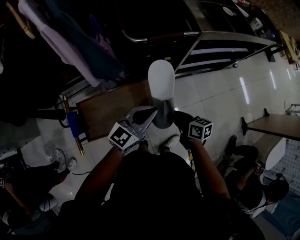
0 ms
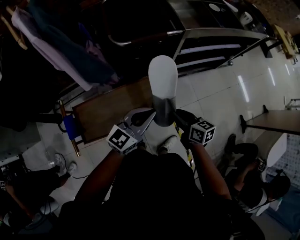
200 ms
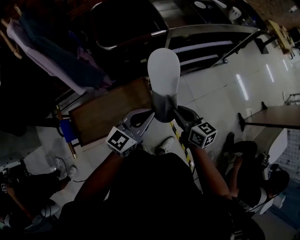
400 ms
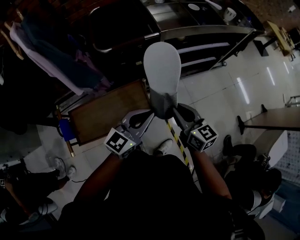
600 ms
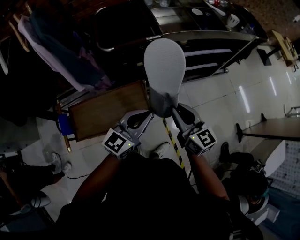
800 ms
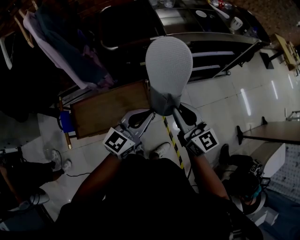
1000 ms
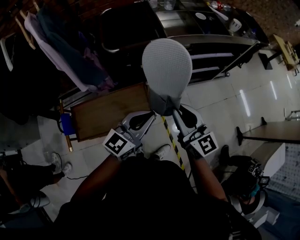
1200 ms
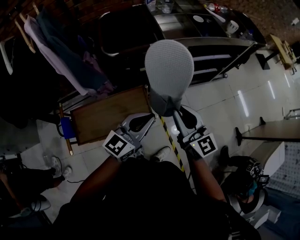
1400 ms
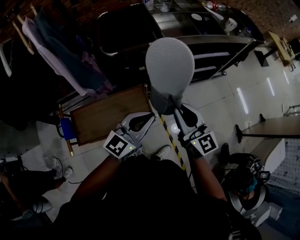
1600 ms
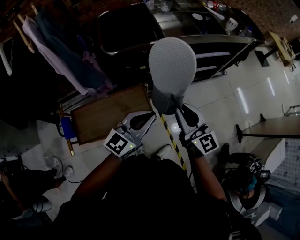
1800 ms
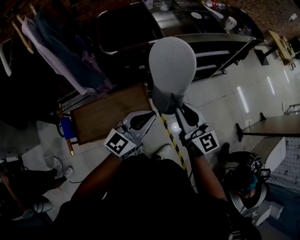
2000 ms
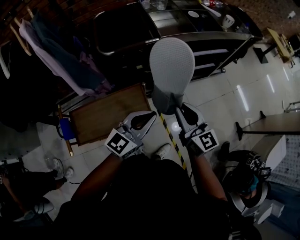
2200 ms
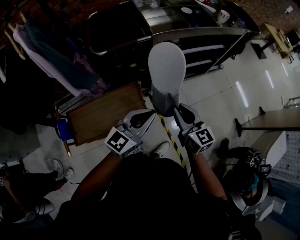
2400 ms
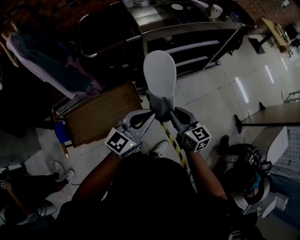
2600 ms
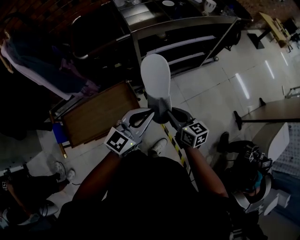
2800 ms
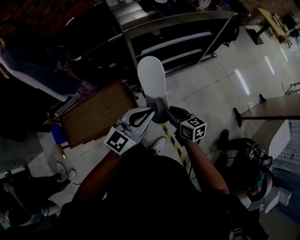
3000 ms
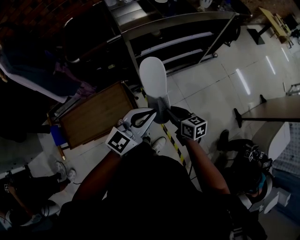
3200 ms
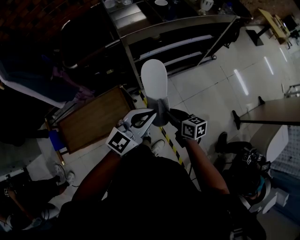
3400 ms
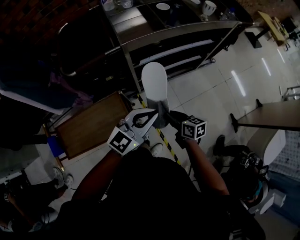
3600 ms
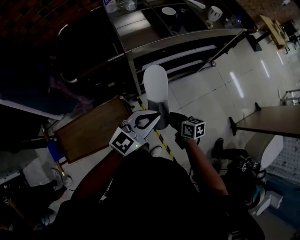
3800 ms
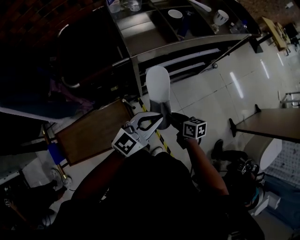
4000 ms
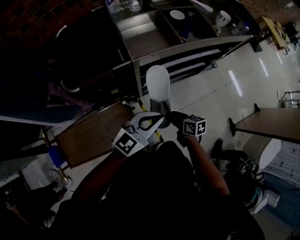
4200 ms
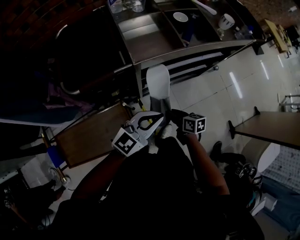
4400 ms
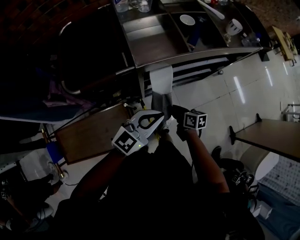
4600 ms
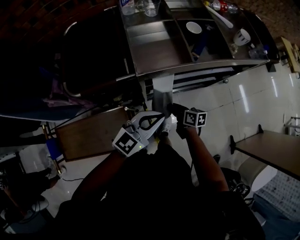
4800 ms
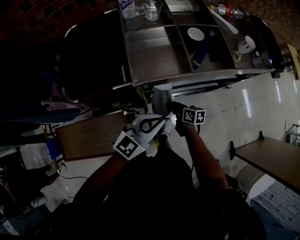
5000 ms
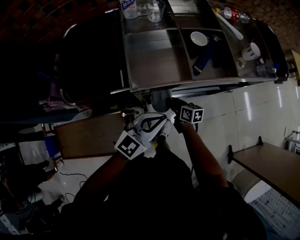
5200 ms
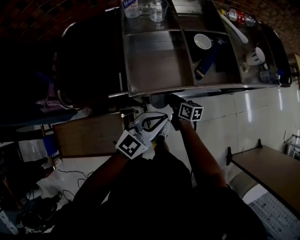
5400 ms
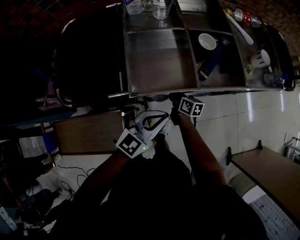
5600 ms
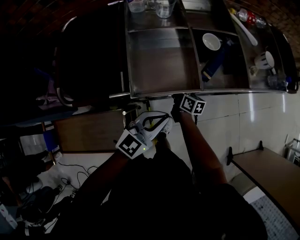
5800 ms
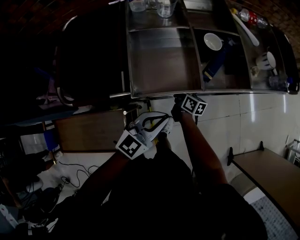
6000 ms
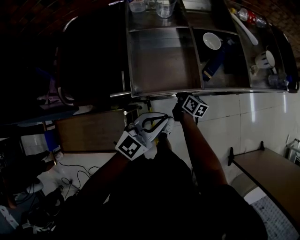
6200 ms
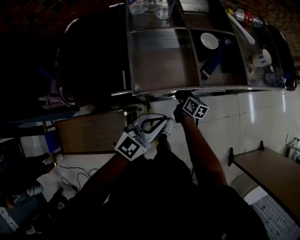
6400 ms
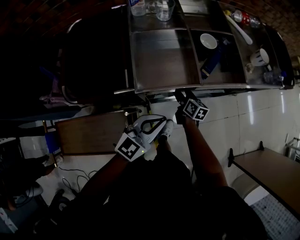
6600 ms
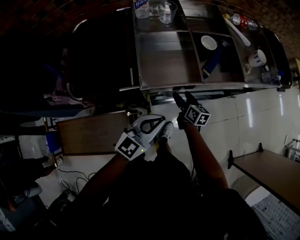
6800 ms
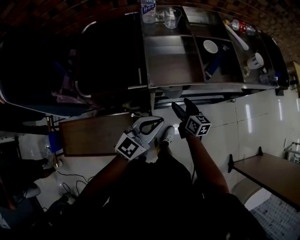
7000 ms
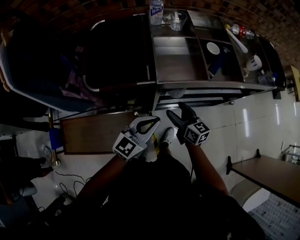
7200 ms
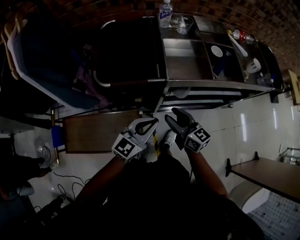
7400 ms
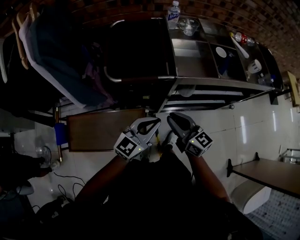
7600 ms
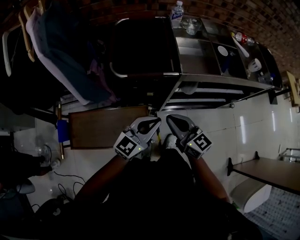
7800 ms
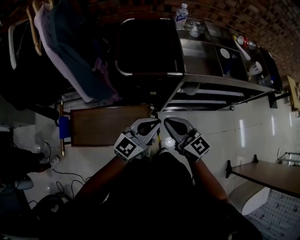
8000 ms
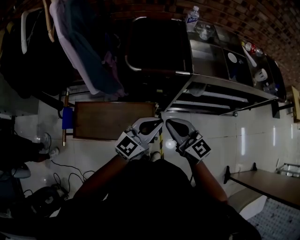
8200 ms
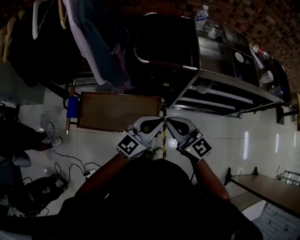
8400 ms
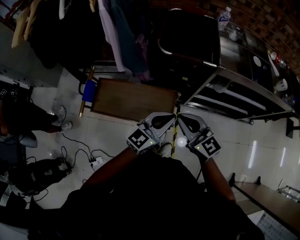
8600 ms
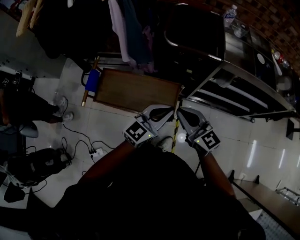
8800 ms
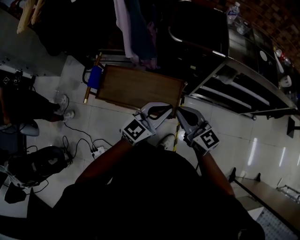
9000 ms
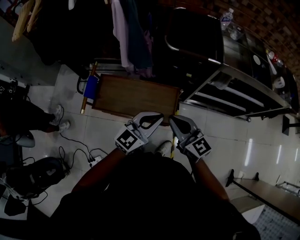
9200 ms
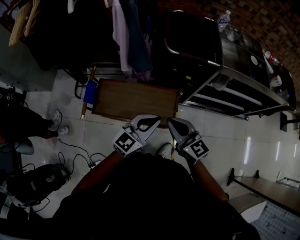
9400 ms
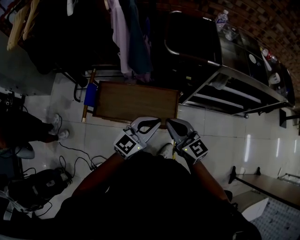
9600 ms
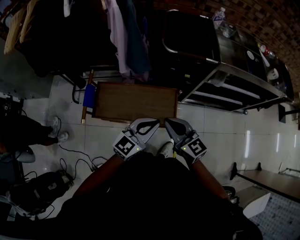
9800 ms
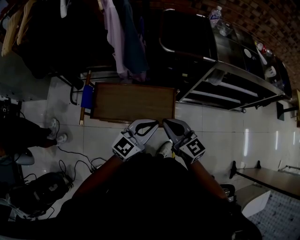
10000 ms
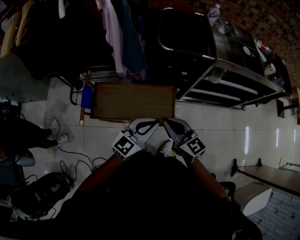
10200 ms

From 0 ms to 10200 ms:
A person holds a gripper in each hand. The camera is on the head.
From 0 ms to 1400 ms: The right gripper travels upward and to the right by approximately 25 cm, and swivels roughly 50 degrees, while the left gripper shifts some 15 cm to the right and upward.
From 1400 ms to 3000 ms: The left gripper goes some 15 cm to the right. Meanwhile the right gripper shifts about 25 cm downward and to the right, and changes its angle by approximately 40 degrees.
From 3000 ms to 4400 ms: The right gripper shifts roughly 20 cm forward and downward; the left gripper heads forward, covering roughly 20 cm.
From 4400 ms to 5800 ms: The right gripper goes roughly 25 cm forward. The left gripper goes roughly 15 cm forward.
From 5800 ms to 7200 ms: The right gripper heads upward and backward, covering about 20 cm, rotates some 30 degrees, and opens its fingers. Meanwhile the left gripper is displaced backward and to the left by about 15 cm.
From 7200 ms to 8800 ms: The right gripper travels to the left, backward and upward by about 35 cm, changes its angle by roughly 30 degrees, and closes its fingers; the left gripper moves to the left and backward, some 25 cm.
From 8800 ms to 10200 ms: The two grippers go some 10 cm to the left.

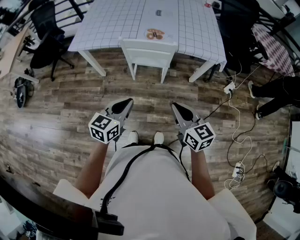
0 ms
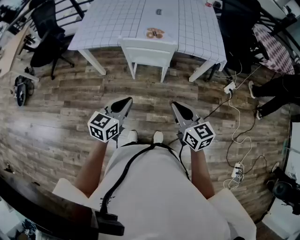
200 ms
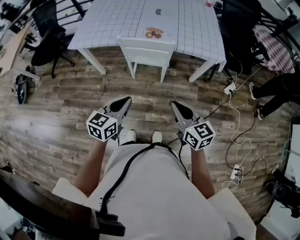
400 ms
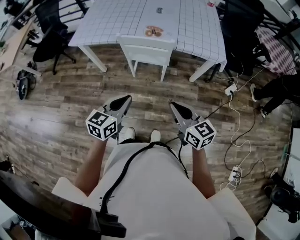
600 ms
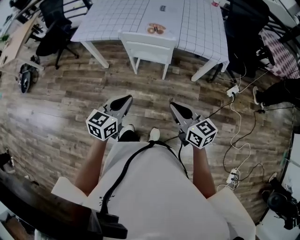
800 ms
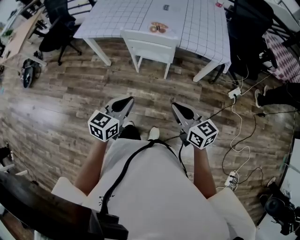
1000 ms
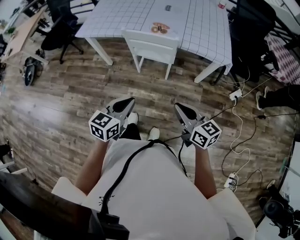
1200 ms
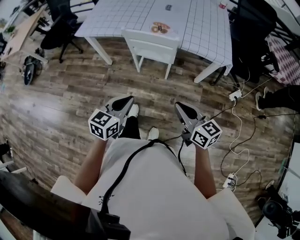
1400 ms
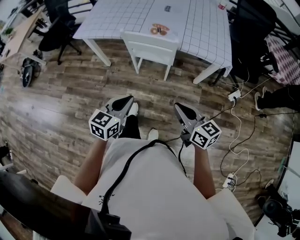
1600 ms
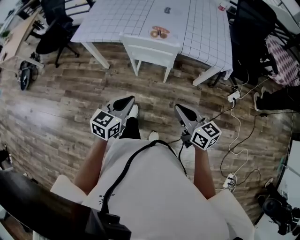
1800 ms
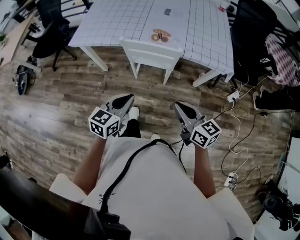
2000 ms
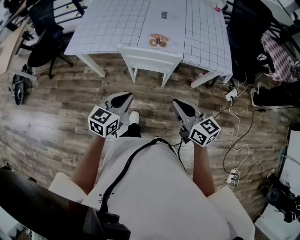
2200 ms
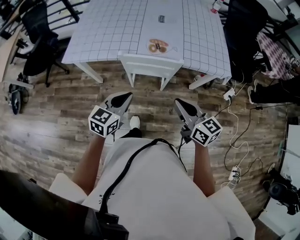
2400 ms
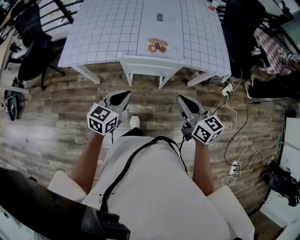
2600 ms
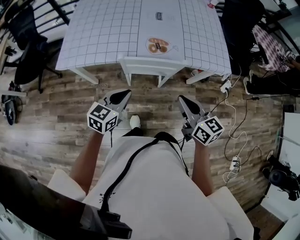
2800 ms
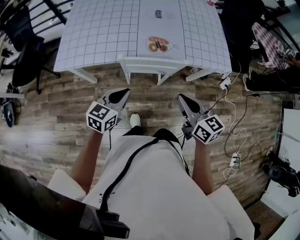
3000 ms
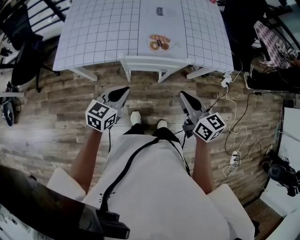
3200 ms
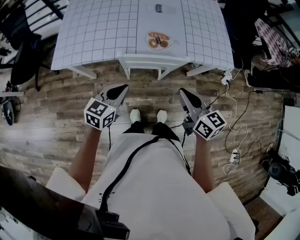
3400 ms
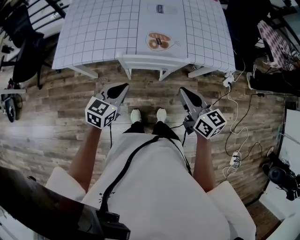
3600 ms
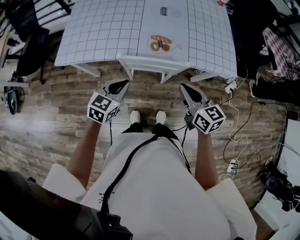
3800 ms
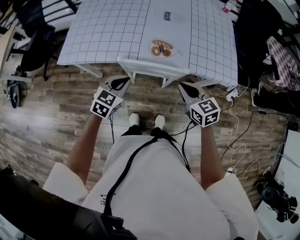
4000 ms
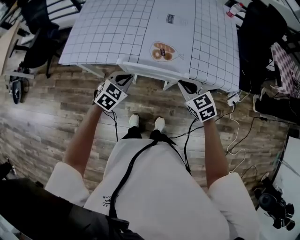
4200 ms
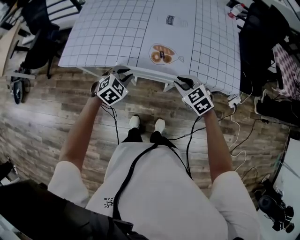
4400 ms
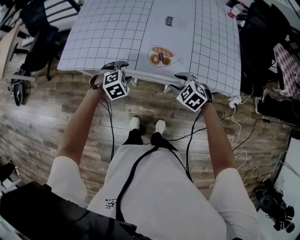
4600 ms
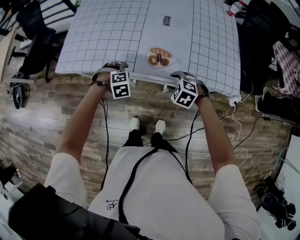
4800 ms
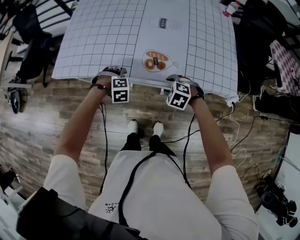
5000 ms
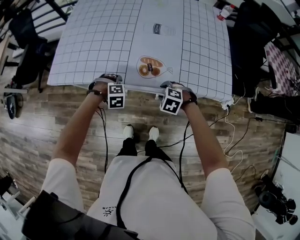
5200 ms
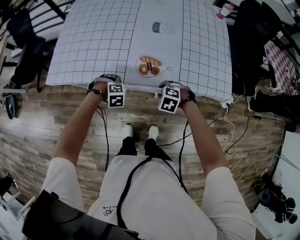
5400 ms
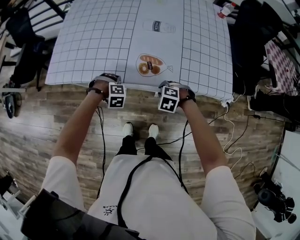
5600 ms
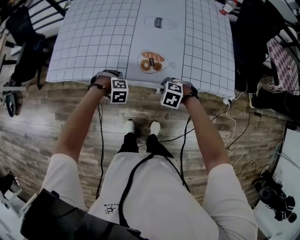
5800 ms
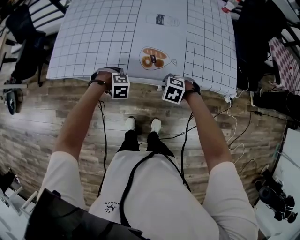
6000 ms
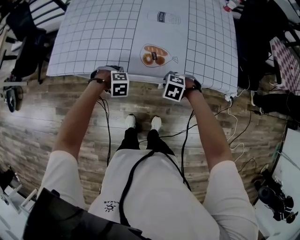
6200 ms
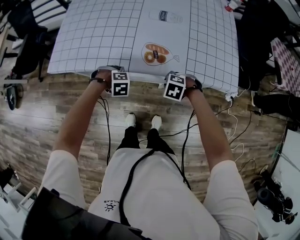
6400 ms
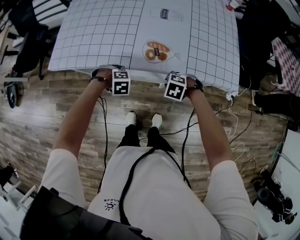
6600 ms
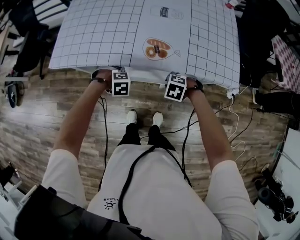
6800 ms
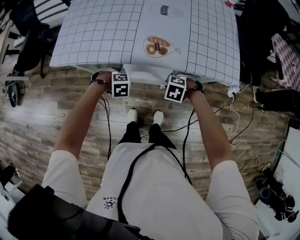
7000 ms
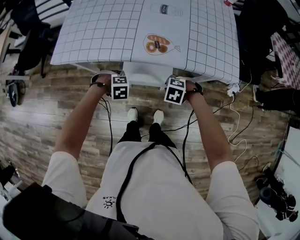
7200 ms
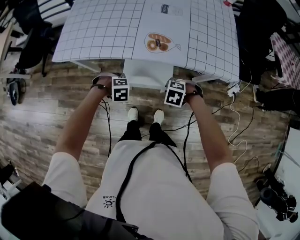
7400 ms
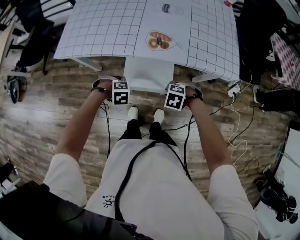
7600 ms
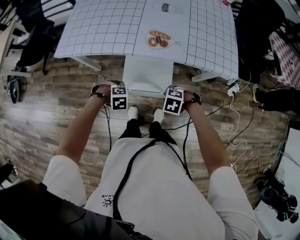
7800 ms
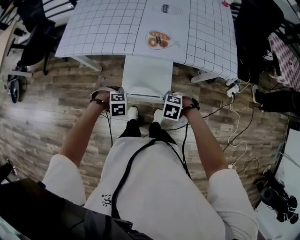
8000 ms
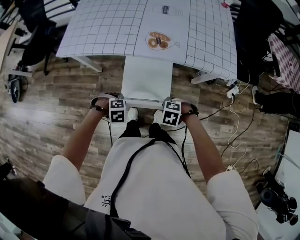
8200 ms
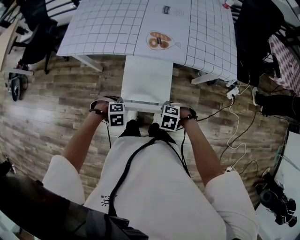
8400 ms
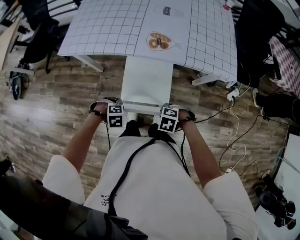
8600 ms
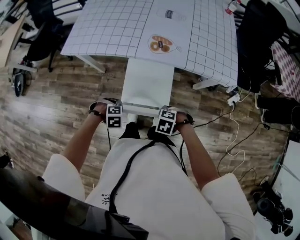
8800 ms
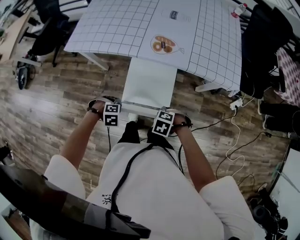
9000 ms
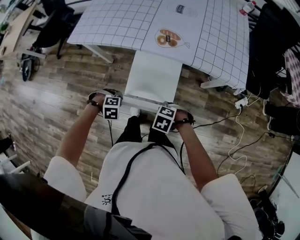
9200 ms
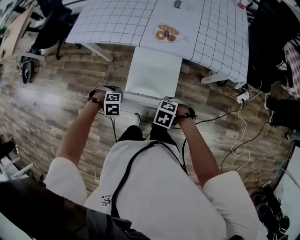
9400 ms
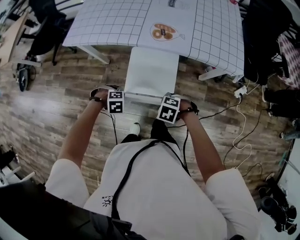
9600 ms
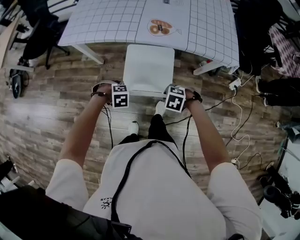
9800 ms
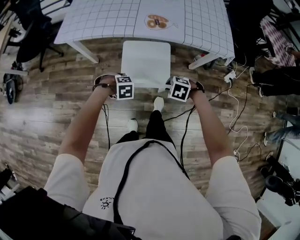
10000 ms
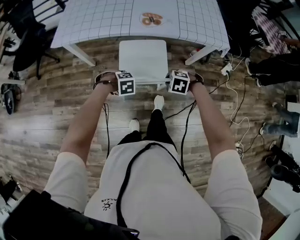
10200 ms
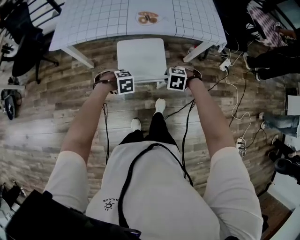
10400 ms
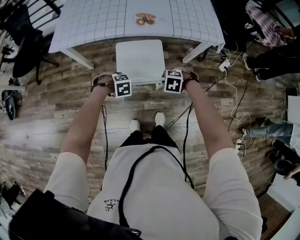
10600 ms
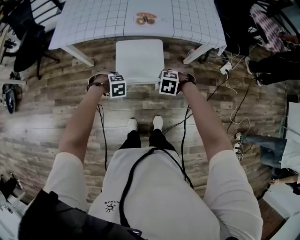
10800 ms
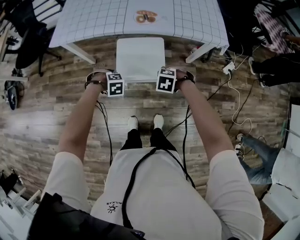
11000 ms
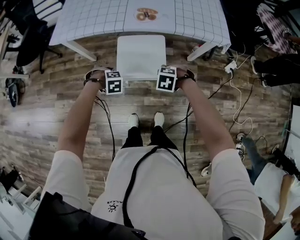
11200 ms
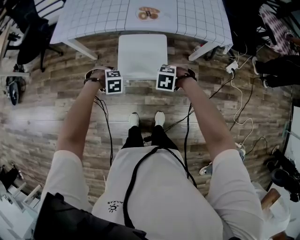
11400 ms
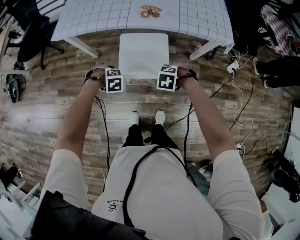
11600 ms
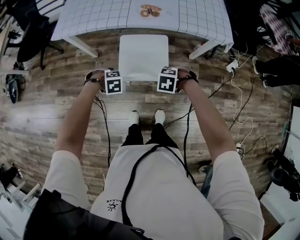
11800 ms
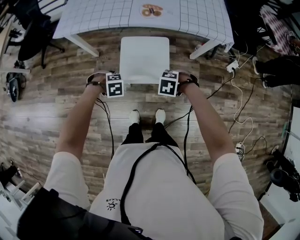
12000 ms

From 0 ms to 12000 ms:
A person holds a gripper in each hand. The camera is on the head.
From 0 ms to 1600 ms: The grippers both shift to the right by some 5 cm.
From 1600 ms to 3000 ms: Both grippers travel together forward and to the left, some 30 cm.
From 3000 ms to 4400 ms: The two grippers go some 20 cm forward and downward. The right gripper turns by roughly 50 degrees, while the left gripper changes its angle by some 40 degrees.
From 4400 ms to 6000 ms: The grippers both shift downward by about 10 cm. The right gripper tips its fingers downward by roughly 30 degrees, and opens, then closes once more, while the left gripper tilts its fingers some 30 degrees downward, and opens and closes again.
From 6000 ms to 7600 ms: The left gripper moves roughly 20 cm, while the right gripper changes place by roughly 15 cm.
From 7600 ms to 9000 ms: The right gripper moves about 15 cm. Meanwhile the left gripper ends up some 15 cm from where it was.
From 9000 ms to 10400 ms: There are only small adjustments of the grippers.
From 10400 ms to 12000 ms: The right gripper changes place by about 5 cm. Meanwhile the left gripper changes place by approximately 5 cm.

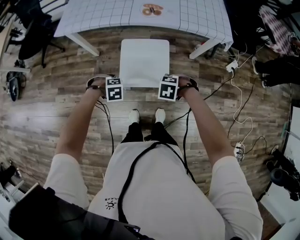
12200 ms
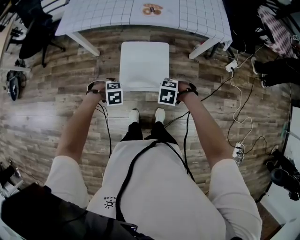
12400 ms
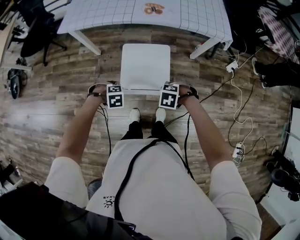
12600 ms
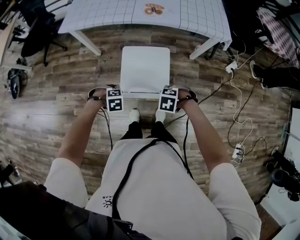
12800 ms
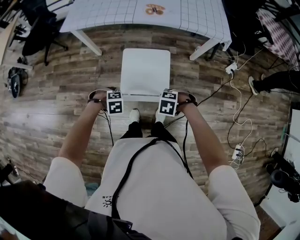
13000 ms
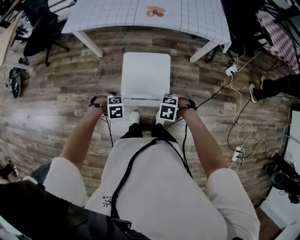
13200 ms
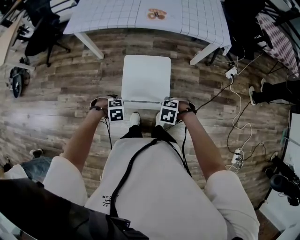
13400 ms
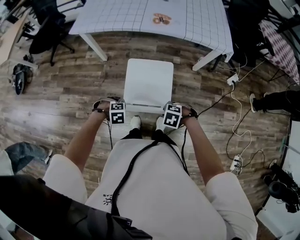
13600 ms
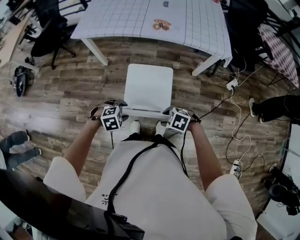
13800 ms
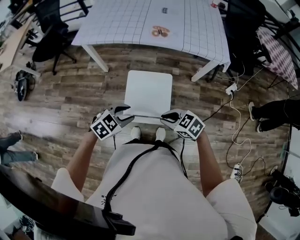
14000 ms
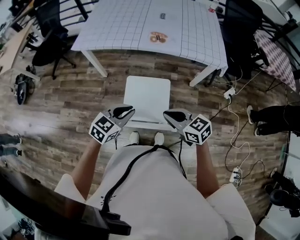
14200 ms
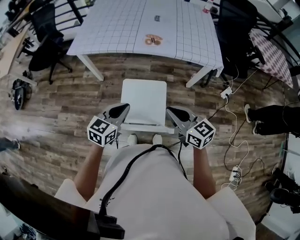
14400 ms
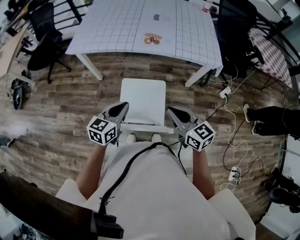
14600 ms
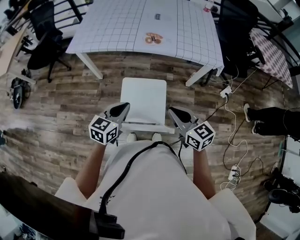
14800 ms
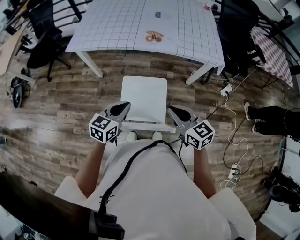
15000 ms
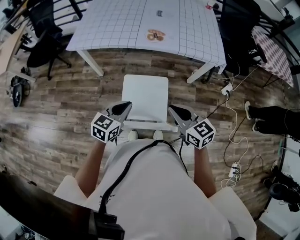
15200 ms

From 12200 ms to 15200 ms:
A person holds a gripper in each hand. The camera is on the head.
From 12200 ms to 13800 ms: The right gripper ends up roughly 15 cm from where it was, and opens up, while the left gripper changes place by approximately 15 cm, swivels about 20 degrees, and opens.
From 13800 ms to 15200 ms: Both grippers move upward, roughly 15 cm. The left gripper tilts its fingers some 40 degrees upward, and closes; the right gripper points its fingers about 40 degrees further upward, and closes its fingers.
